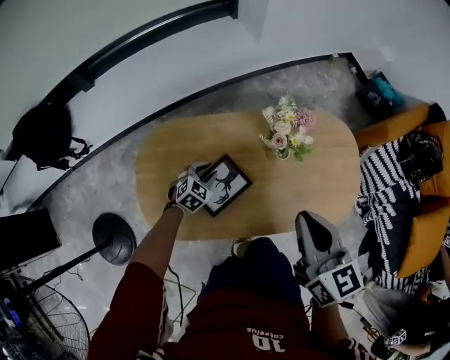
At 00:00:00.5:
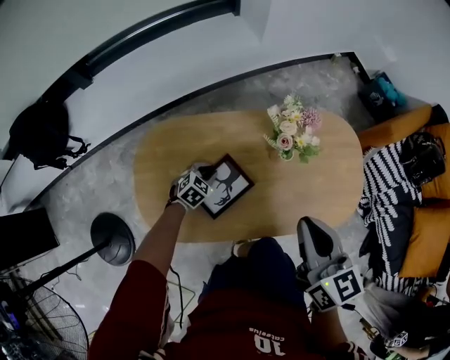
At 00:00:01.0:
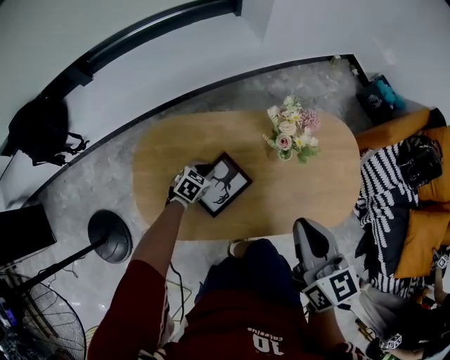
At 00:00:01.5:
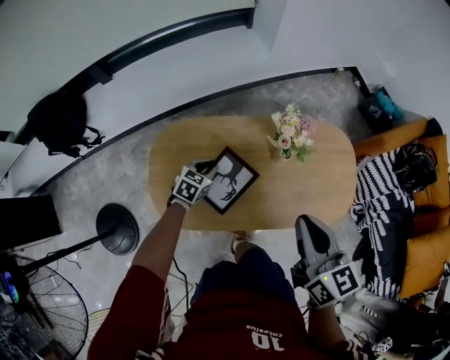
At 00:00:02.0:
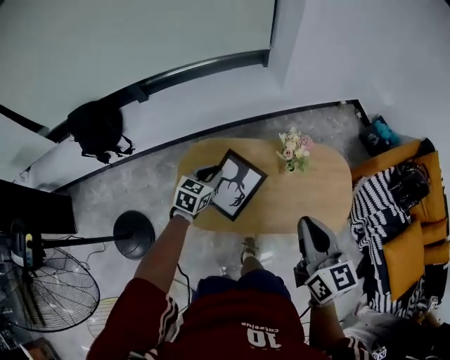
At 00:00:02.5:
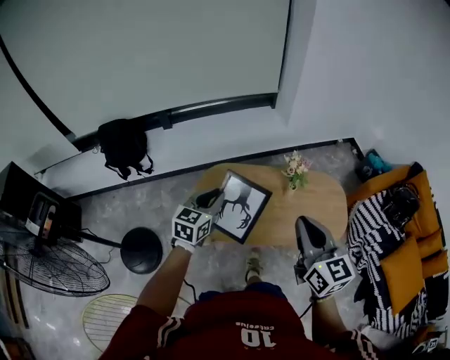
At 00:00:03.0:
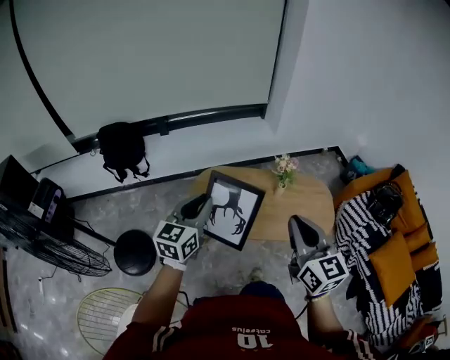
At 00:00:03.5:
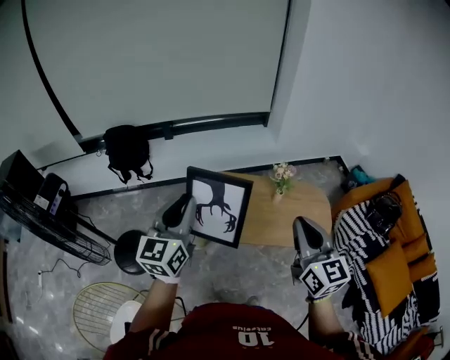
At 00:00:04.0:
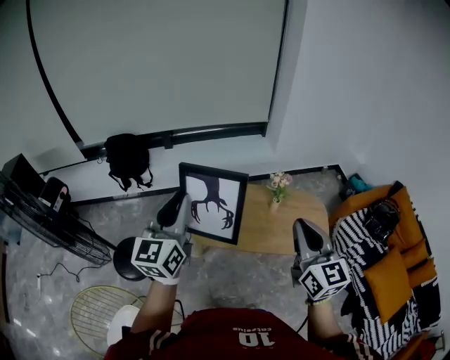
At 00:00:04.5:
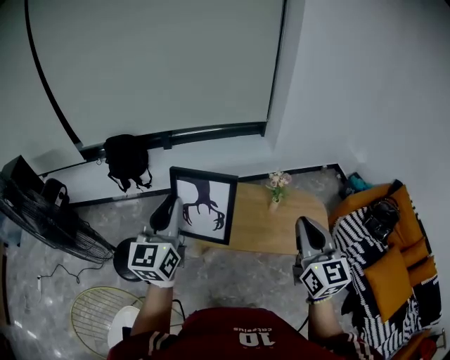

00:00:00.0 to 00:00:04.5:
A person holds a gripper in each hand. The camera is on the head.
00:00:00.0 to 00:00:02.0: The left gripper shifts some 30 cm upward, and rotates some 30 degrees. Meanwhile the right gripper travels upward and backward by approximately 20 cm.
00:00:02.0 to 00:00:04.5: The left gripper travels upward and backward by approximately 50 cm, and angles its fingers upward, by about 40 degrees, while the right gripper goes some 25 cm upward and backward, and turns by roughly 20 degrees.

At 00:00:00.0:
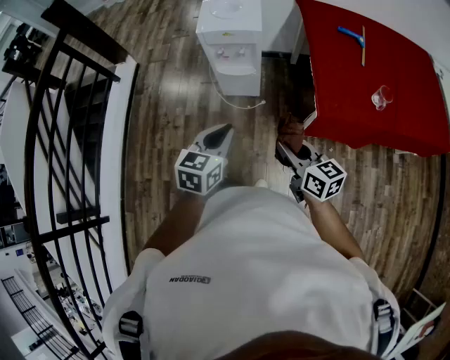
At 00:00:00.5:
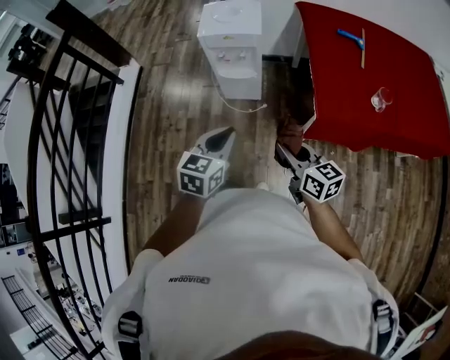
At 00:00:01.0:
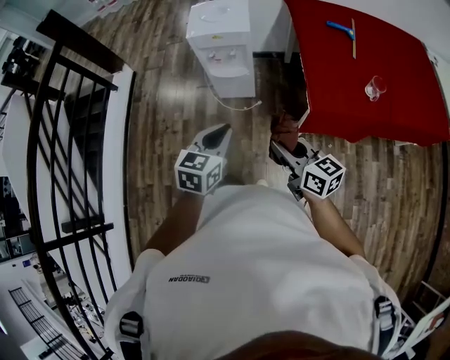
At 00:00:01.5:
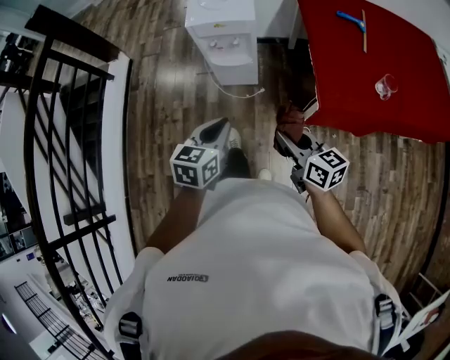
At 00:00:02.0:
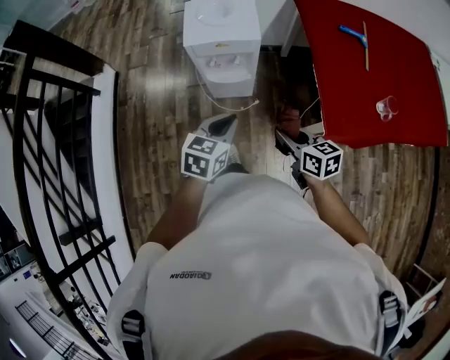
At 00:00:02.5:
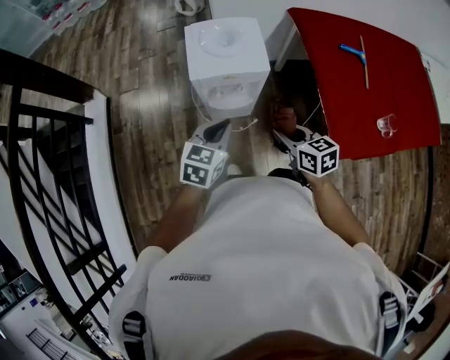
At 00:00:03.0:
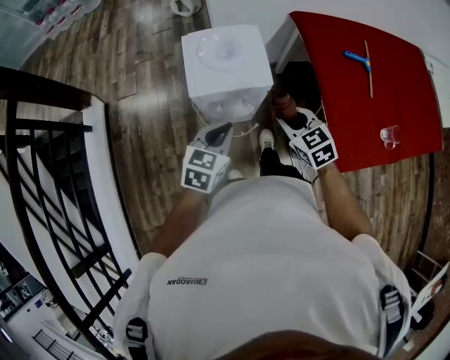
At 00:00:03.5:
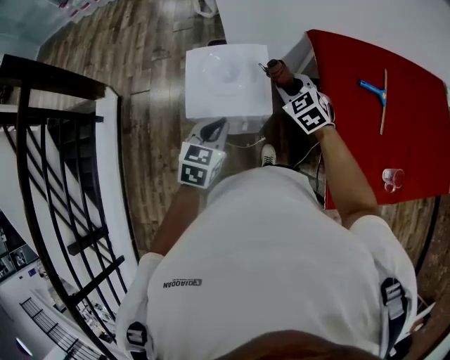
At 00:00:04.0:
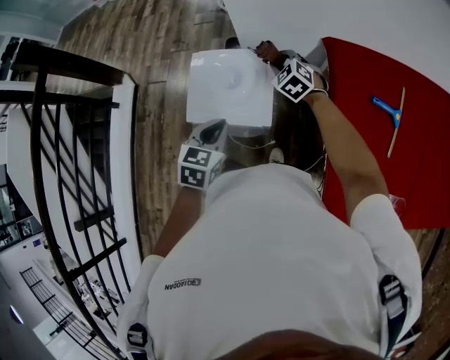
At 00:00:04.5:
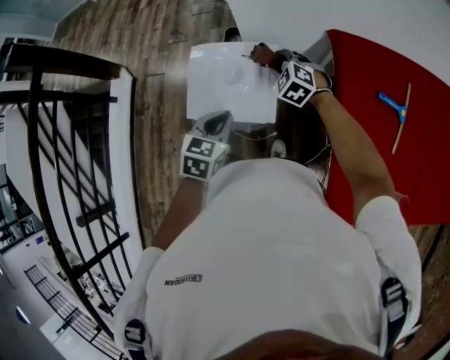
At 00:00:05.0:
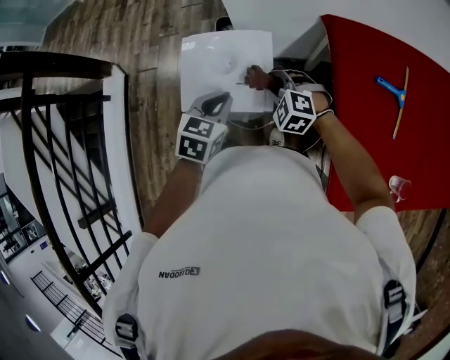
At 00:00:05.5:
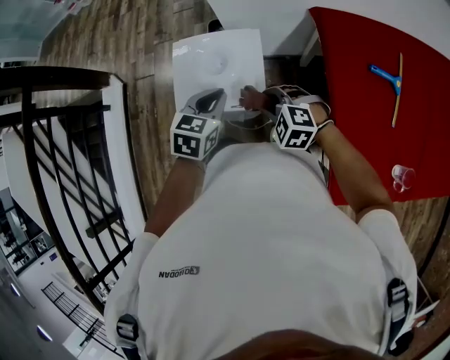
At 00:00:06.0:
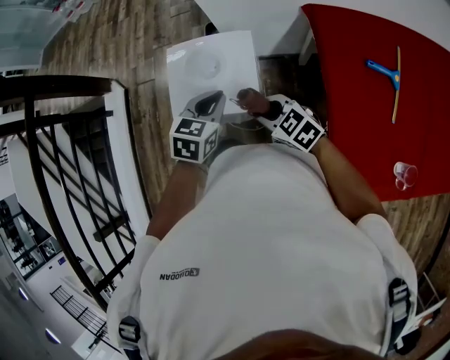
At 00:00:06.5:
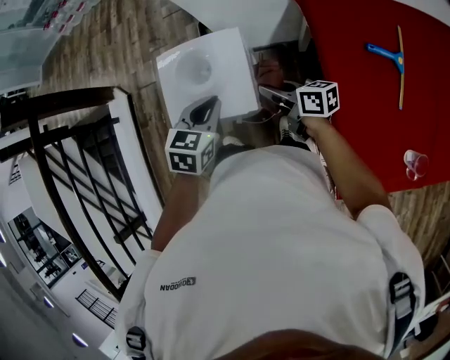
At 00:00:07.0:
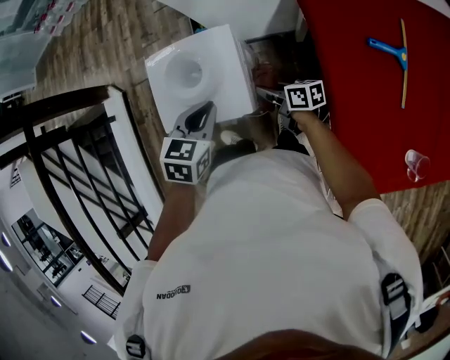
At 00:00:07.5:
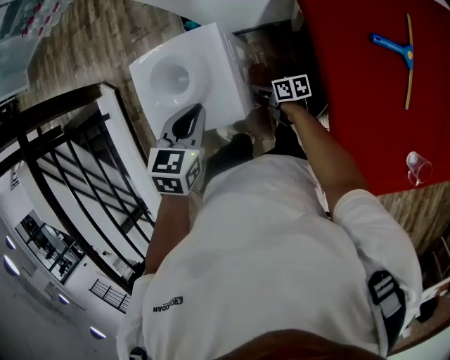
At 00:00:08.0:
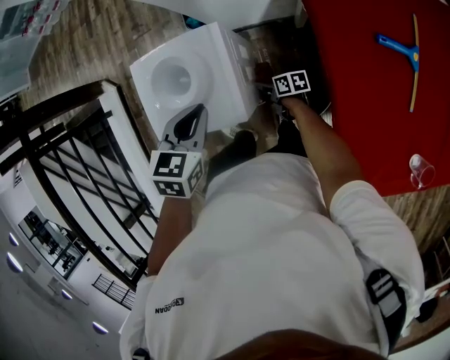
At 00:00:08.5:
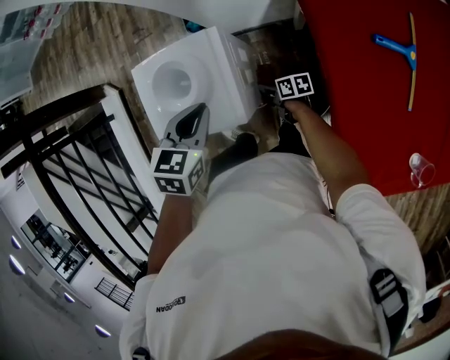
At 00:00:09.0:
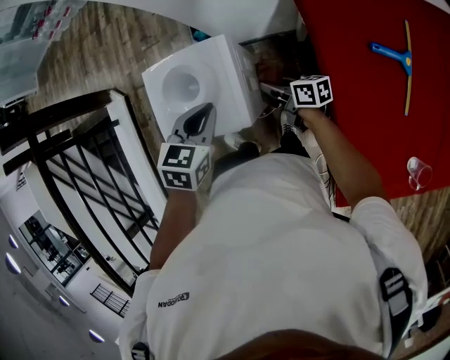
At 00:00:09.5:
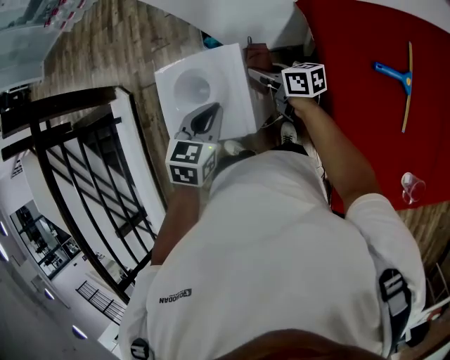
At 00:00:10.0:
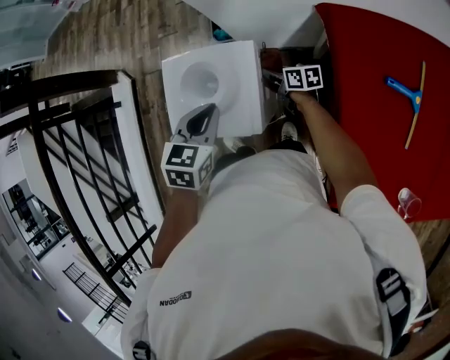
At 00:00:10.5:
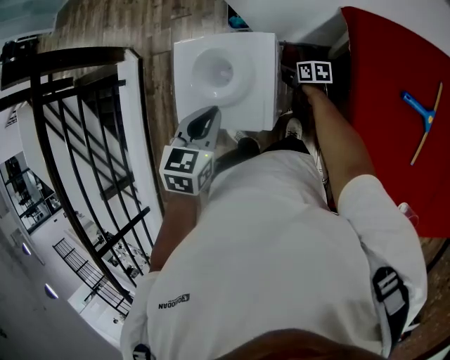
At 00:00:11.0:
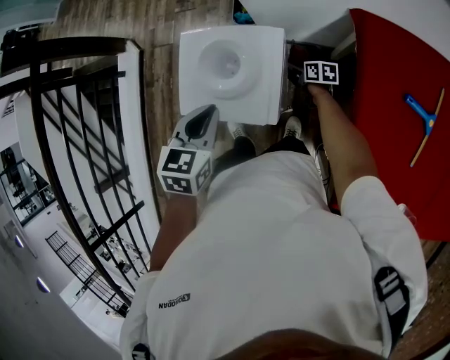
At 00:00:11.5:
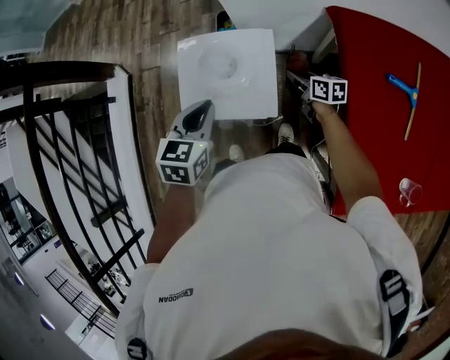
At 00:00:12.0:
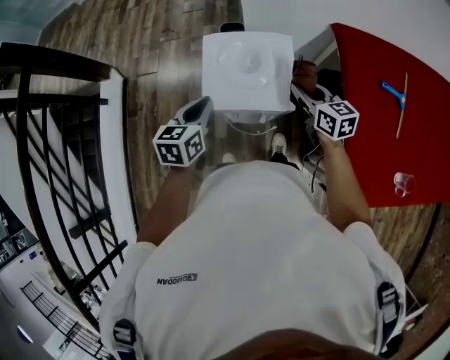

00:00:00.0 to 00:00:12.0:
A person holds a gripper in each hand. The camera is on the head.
00:00:00.0 to 00:00:02.0: The grippers both shift forward by about 15 cm.
00:00:02.0 to 00:00:04.0: The left gripper shifts some 30 cm forward. Meanwhile the right gripper shifts approximately 60 cm forward, and rotates around the line of its fingers by approximately 60 degrees, counterclockwise from behind.
00:00:04.0 to 00:00:06.0: The left gripper changes place by approximately 5 cm, while the right gripper shifts about 20 cm backward, and swivels approximately 30 degrees.
00:00:06.0 to 00:00:08.0: The right gripper shifts approximately 30 cm downward, and twists roughly 70 degrees clockwise, seen from behind.
00:00:08.0 to 00:00:10.0: The right gripper shifts roughly 15 cm forward and upward.
00:00:10.0 to 00:00:12.0: The left gripper shifts approximately 20 cm to the left, and turns by some 20 degrees, while the right gripper shifts about 25 cm upward and backward, and changes its angle by roughly 30 degrees.

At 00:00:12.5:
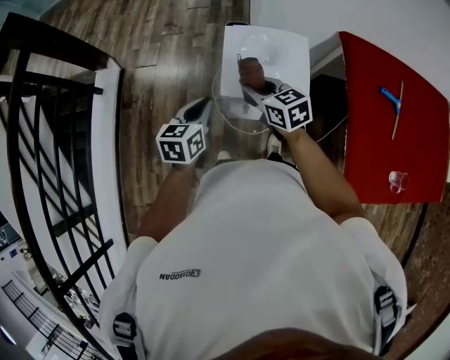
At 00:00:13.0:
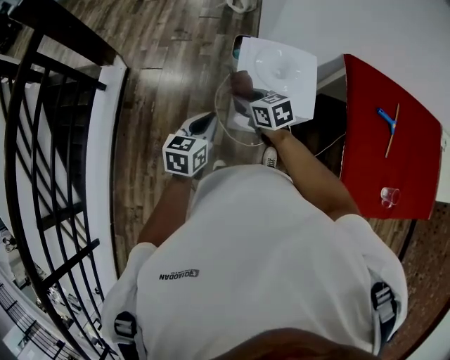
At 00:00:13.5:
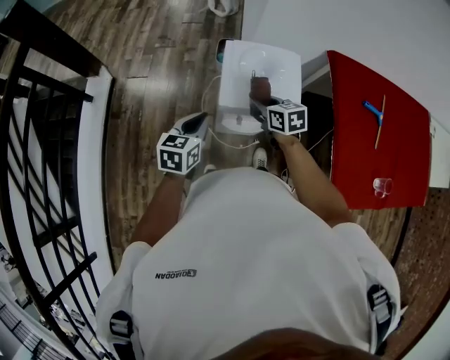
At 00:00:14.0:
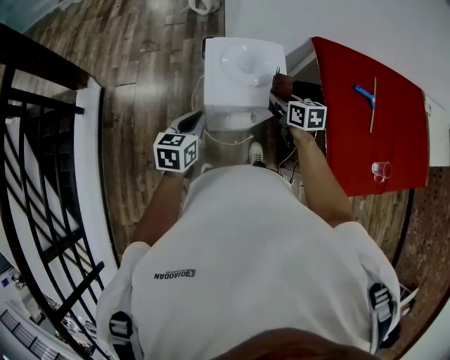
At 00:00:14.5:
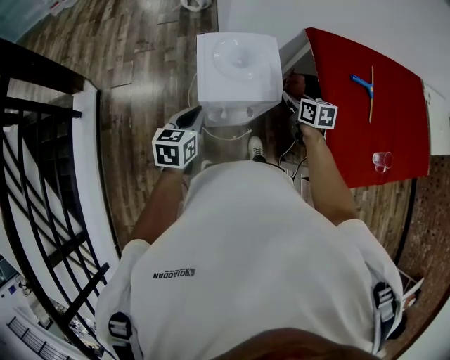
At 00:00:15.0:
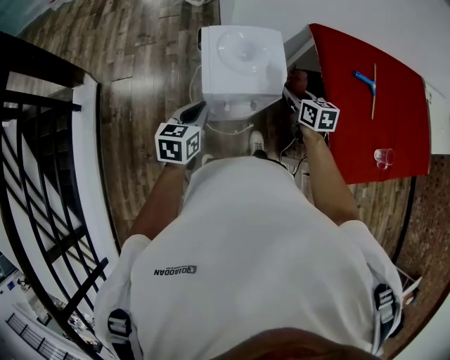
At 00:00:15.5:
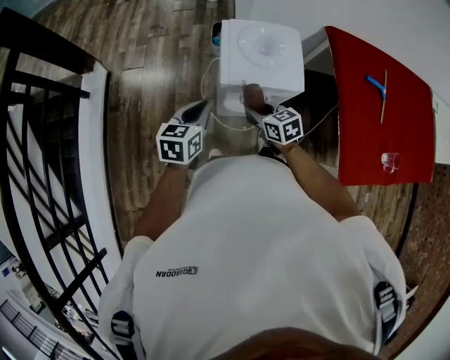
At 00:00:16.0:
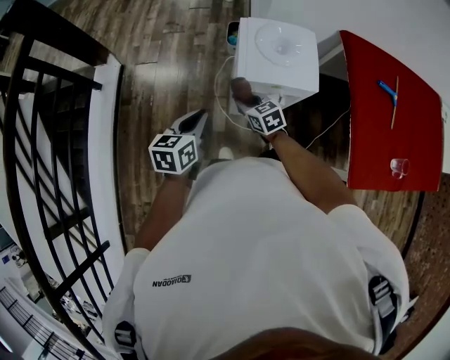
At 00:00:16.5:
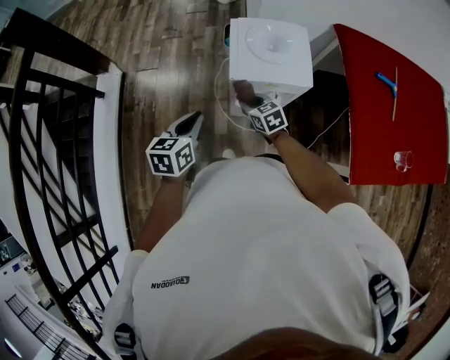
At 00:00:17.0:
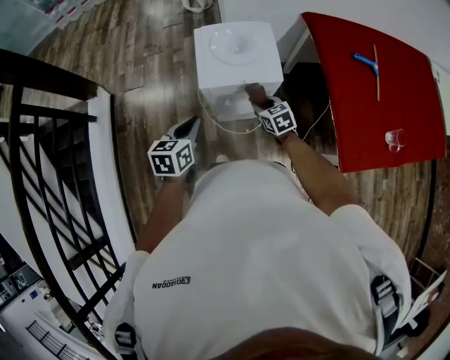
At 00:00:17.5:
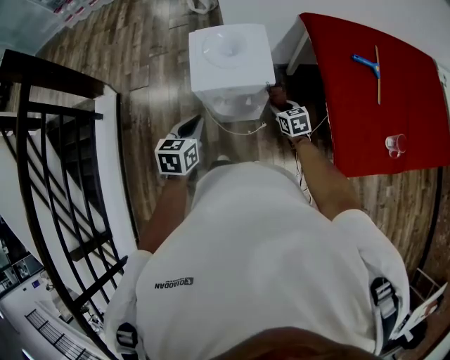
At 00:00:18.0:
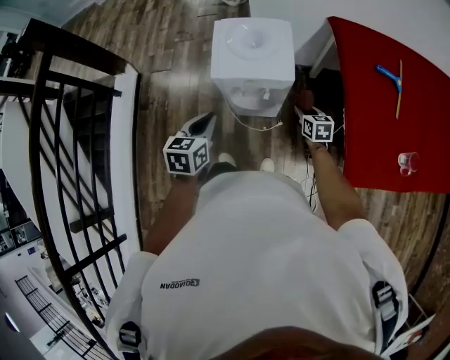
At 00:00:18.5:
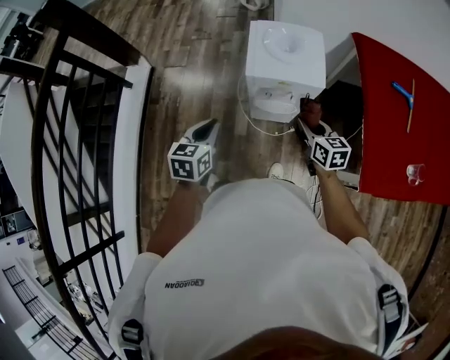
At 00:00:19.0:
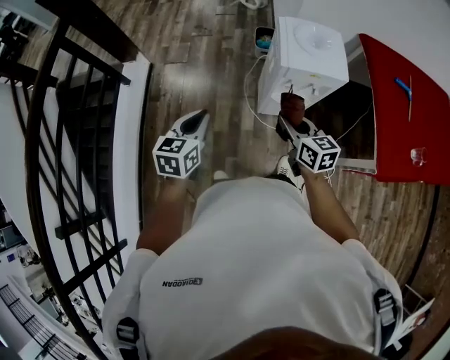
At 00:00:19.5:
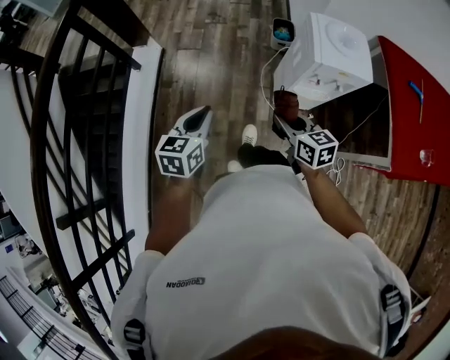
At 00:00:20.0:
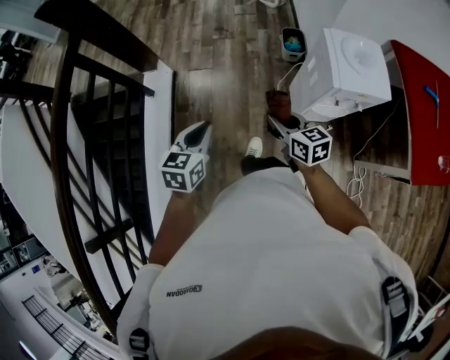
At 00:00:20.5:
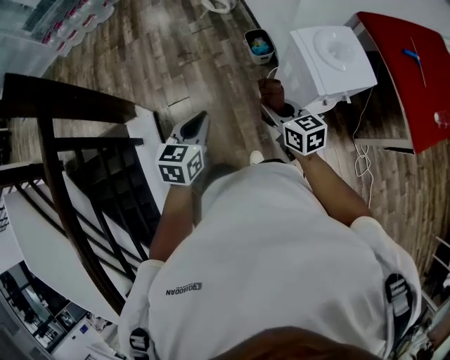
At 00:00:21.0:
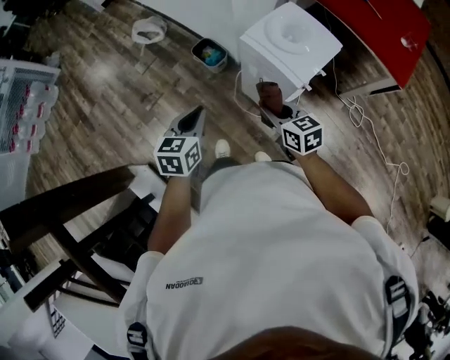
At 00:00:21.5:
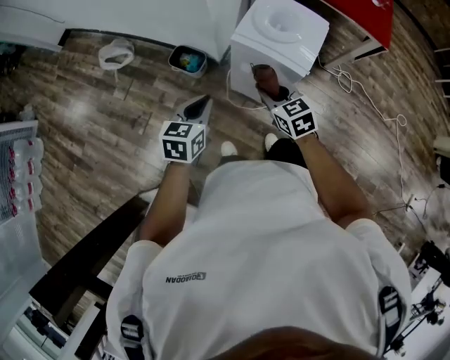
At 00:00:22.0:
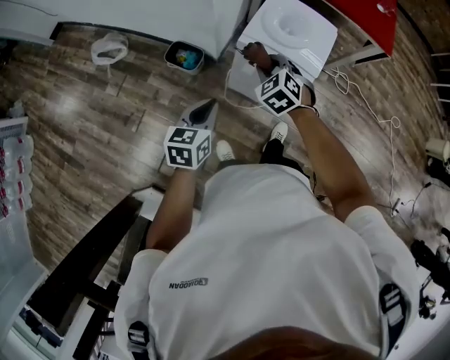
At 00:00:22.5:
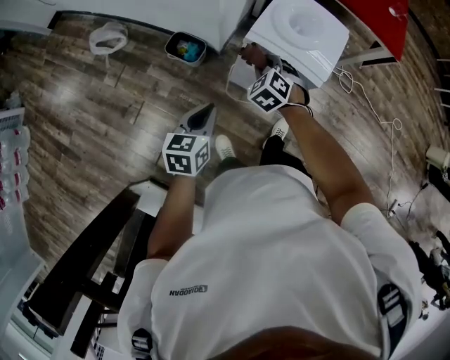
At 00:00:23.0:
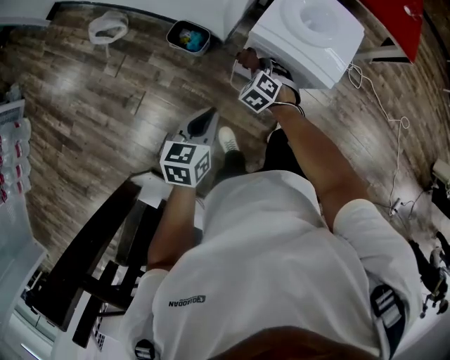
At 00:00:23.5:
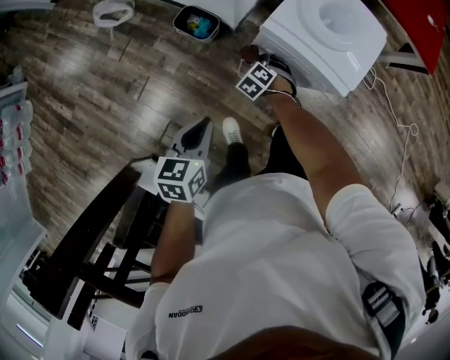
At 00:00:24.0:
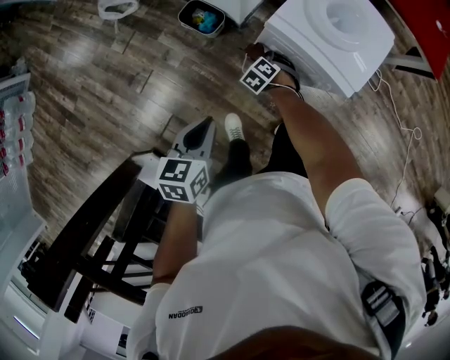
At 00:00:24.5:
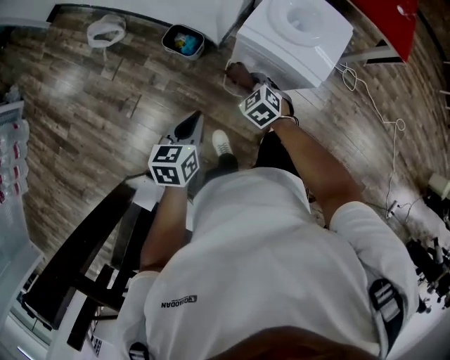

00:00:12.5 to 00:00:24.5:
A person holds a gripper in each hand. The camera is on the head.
00:00:12.5 to 00:00:14.5: The right gripper goes approximately 20 cm to the right, and changes its angle by roughly 30 degrees.
00:00:14.5 to 00:00:16.5: The left gripper moves to the left and backward, about 15 cm. Meanwhile the right gripper heads to the left, covering about 25 cm, and rotates roughly 30 degrees.
00:00:16.5 to 00:00:18.5: The right gripper travels to the right, backward and upward by roughly 20 cm, and swivels approximately 20 degrees. Meanwhile the left gripper shifts approximately 5 cm backward, and travels to the right and back again, about 15 cm each way.
00:00:18.5 to 00:00:20.5: Both grippers travel together to the left and forward, some 40 cm. The left gripper rotates approximately 30 degrees.
00:00:20.5 to 00:00:22.5: The left gripper ends up roughly 25 cm from where it was, and turns by roughly 40 degrees, while the right gripper changes place by roughly 25 cm, and swivels roughly 70 degrees.
00:00:22.5 to 00:00:24.5: The right gripper shifts roughly 5 cm backward, and goes downward and returns, about 25 cm each way.
